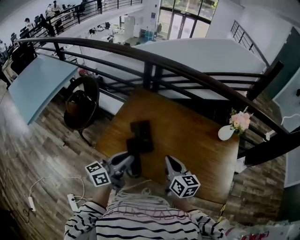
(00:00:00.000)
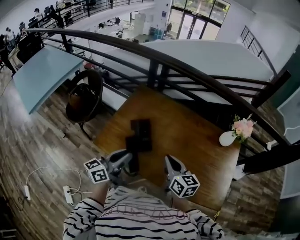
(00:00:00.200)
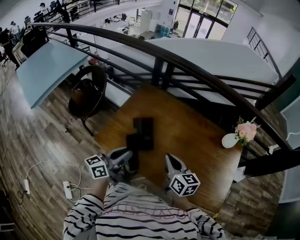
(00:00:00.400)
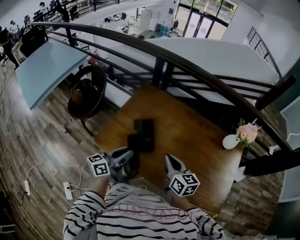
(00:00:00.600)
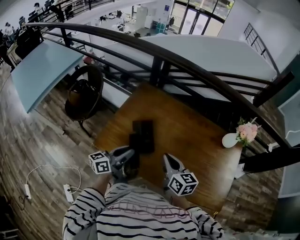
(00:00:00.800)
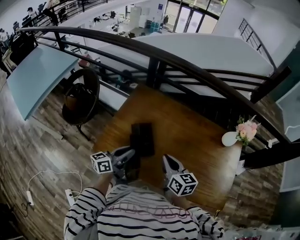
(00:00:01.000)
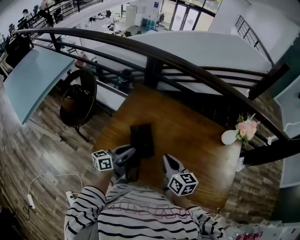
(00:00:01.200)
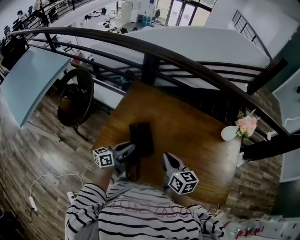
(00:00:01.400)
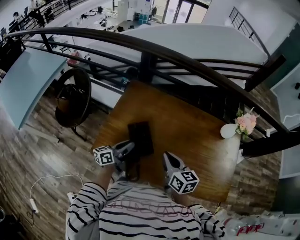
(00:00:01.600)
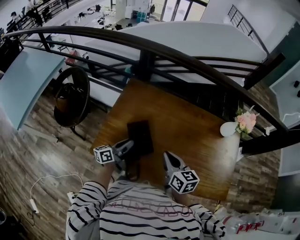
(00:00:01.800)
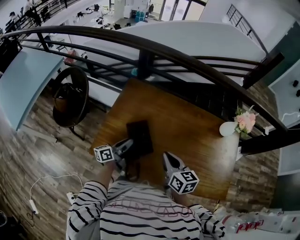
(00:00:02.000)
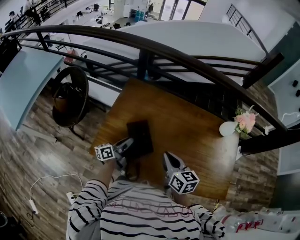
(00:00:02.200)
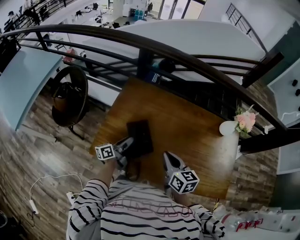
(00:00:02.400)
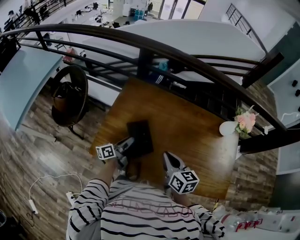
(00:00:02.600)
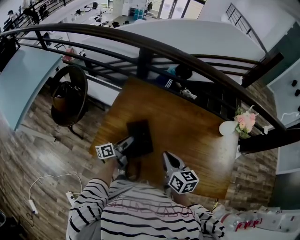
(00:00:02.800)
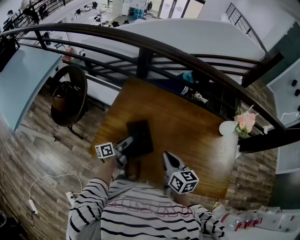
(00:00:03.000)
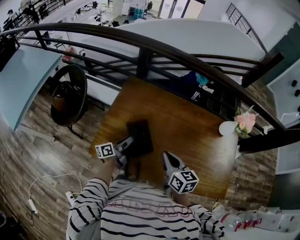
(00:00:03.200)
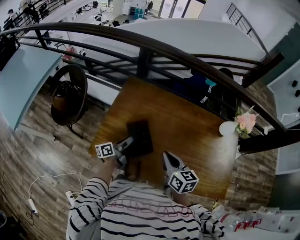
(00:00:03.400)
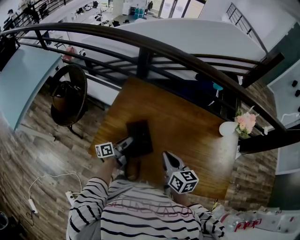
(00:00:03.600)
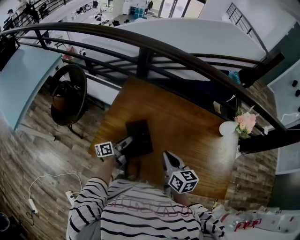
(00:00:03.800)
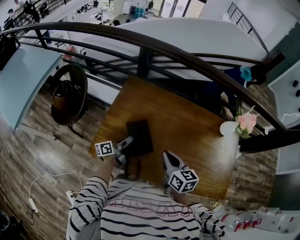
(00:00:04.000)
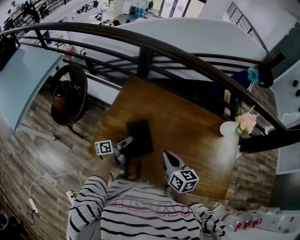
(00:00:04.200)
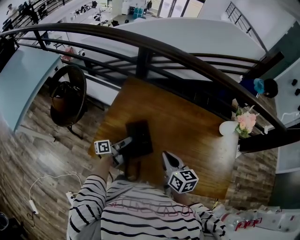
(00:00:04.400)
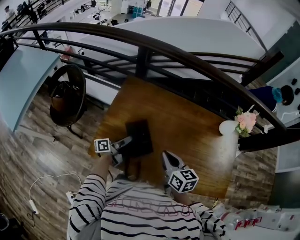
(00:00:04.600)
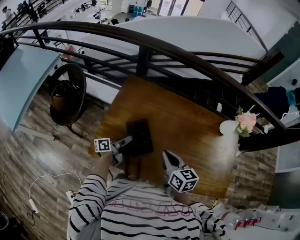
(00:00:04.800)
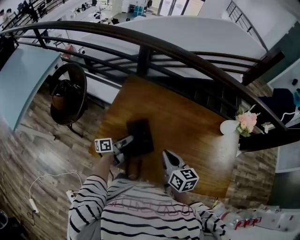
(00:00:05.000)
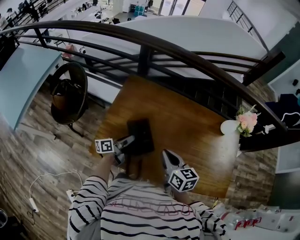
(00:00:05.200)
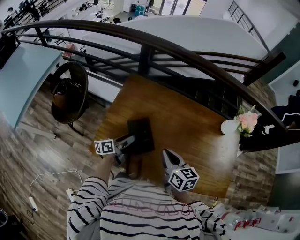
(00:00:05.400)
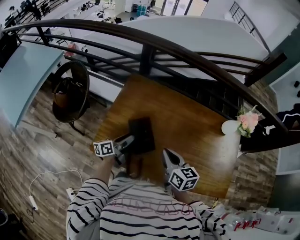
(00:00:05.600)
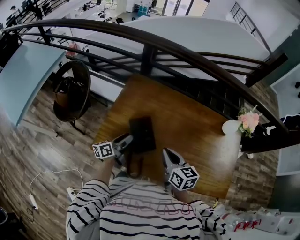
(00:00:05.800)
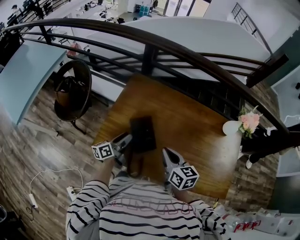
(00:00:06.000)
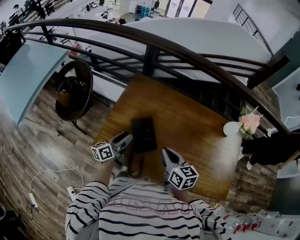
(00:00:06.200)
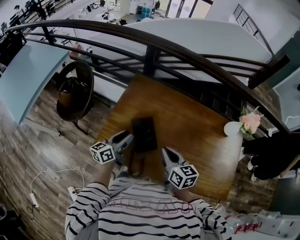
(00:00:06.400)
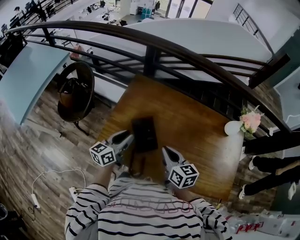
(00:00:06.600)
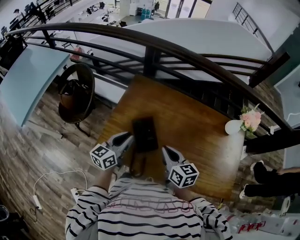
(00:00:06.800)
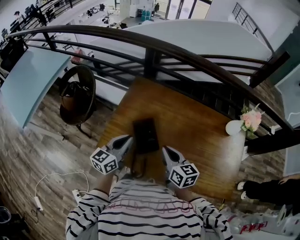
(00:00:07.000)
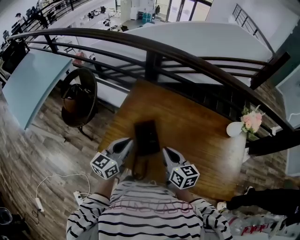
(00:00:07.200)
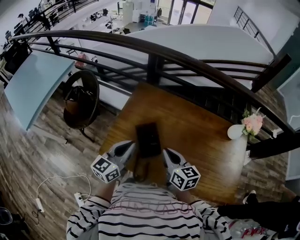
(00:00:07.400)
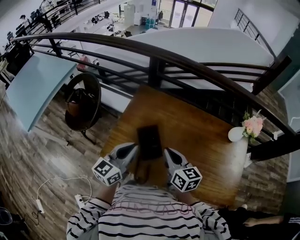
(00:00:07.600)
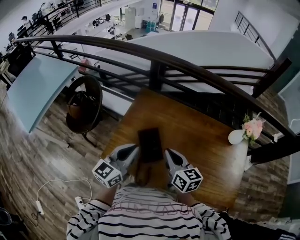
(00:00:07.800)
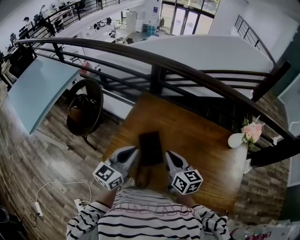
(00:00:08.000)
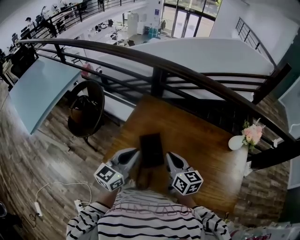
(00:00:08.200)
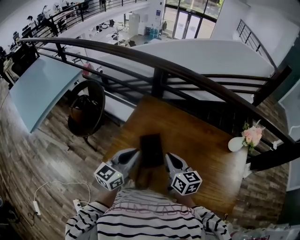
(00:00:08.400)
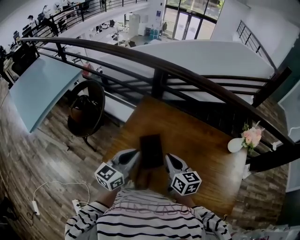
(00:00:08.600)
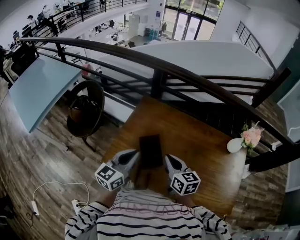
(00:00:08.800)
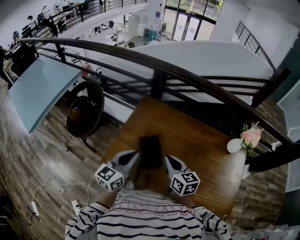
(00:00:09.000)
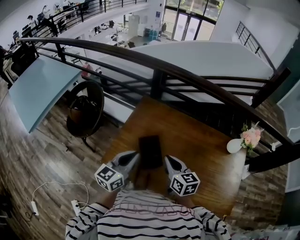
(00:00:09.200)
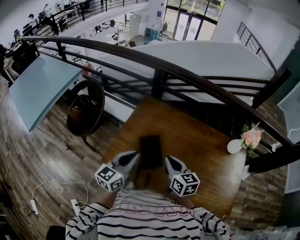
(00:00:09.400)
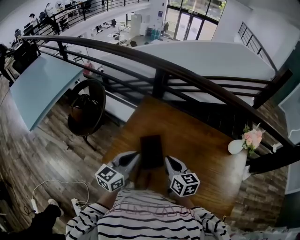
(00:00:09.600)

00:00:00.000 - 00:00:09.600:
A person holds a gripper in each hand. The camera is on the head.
00:00:00.000 - 00:00:01.600: The left gripper heads downward and forward, covering roughly 20 cm. Meanwhile the right gripper goes some 10 cm forward.
00:00:01.600 - 00:00:03.200: The left gripper moves downward, roughly 5 cm.
00:00:03.200 - 00:00:04.800: There are only small adjustments of the grippers.
00:00:04.800 - 00:00:06.400: The left gripper travels upward by approximately 10 cm, and rotates approximately 40 degrees.
00:00:06.400 - 00:00:08.000: The right gripper moves upward, roughly 5 cm. The left gripper moves upward, roughly 15 cm, turns by approximately 30 degrees, and closes up.
00:00:08.000 - 00:00:09.600: The grippers make only small movements.

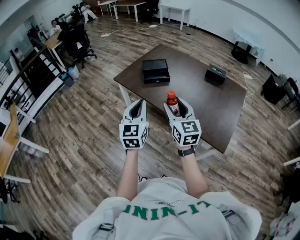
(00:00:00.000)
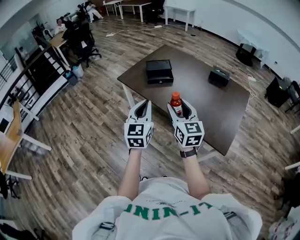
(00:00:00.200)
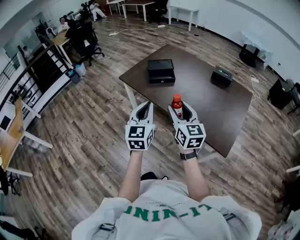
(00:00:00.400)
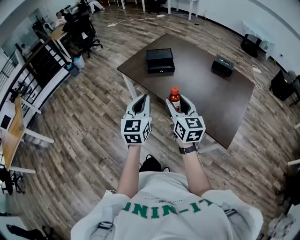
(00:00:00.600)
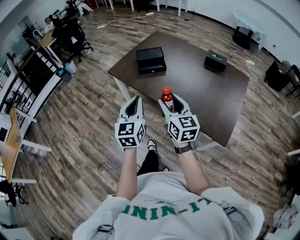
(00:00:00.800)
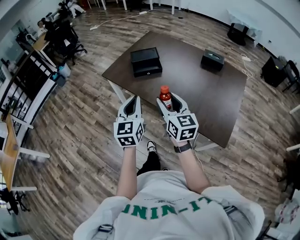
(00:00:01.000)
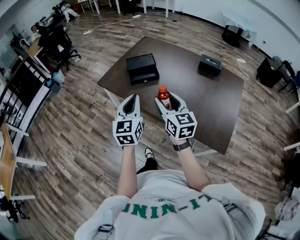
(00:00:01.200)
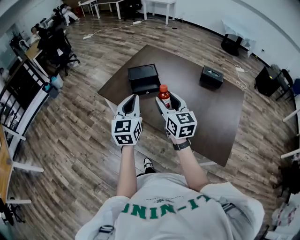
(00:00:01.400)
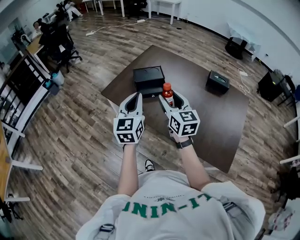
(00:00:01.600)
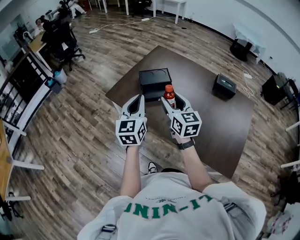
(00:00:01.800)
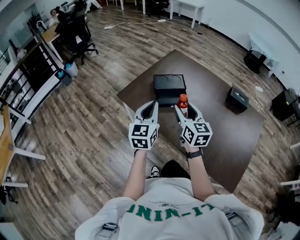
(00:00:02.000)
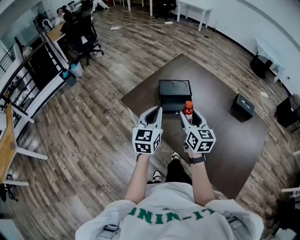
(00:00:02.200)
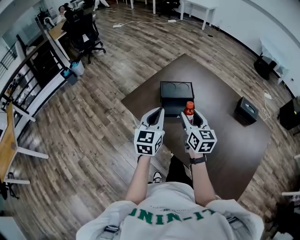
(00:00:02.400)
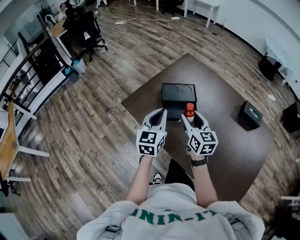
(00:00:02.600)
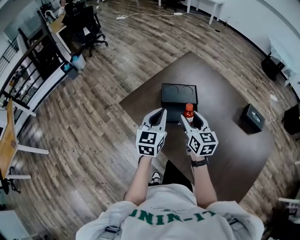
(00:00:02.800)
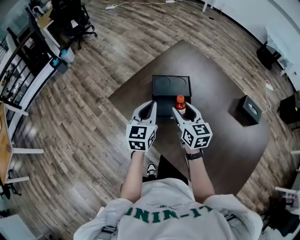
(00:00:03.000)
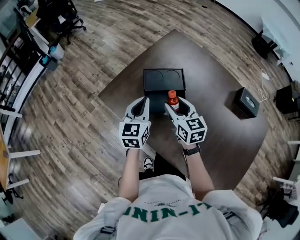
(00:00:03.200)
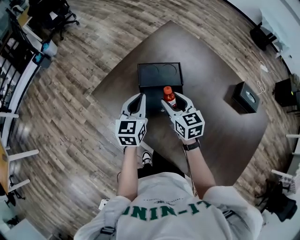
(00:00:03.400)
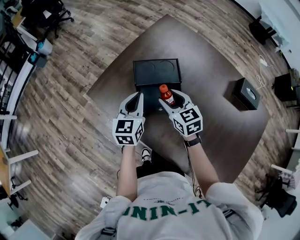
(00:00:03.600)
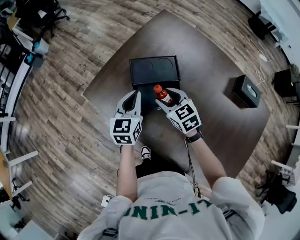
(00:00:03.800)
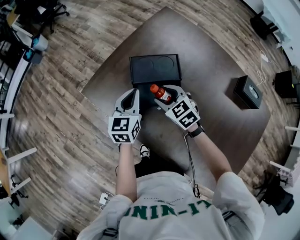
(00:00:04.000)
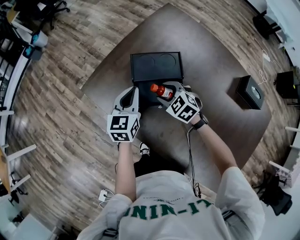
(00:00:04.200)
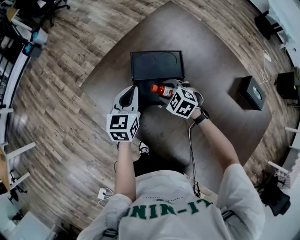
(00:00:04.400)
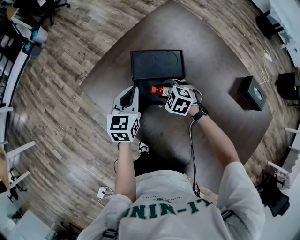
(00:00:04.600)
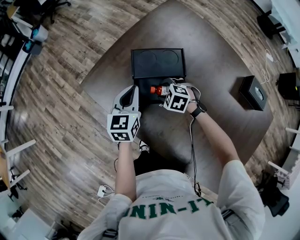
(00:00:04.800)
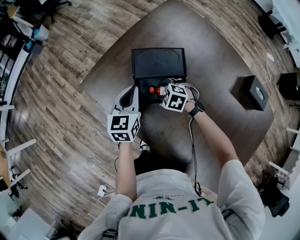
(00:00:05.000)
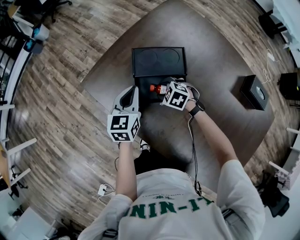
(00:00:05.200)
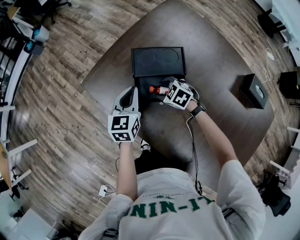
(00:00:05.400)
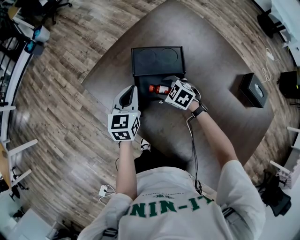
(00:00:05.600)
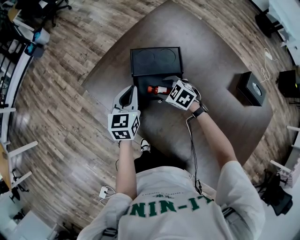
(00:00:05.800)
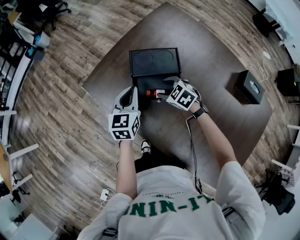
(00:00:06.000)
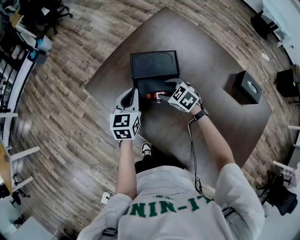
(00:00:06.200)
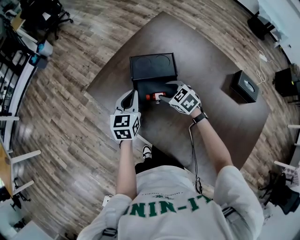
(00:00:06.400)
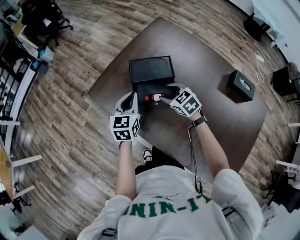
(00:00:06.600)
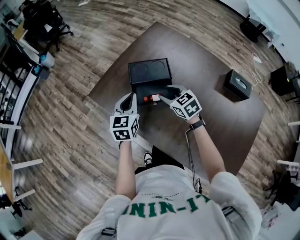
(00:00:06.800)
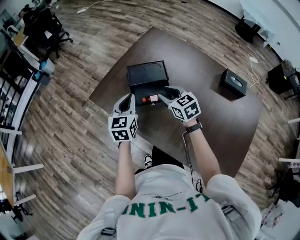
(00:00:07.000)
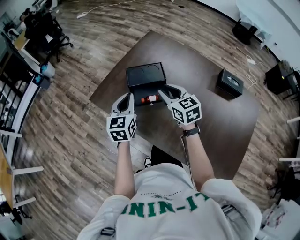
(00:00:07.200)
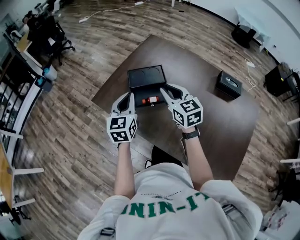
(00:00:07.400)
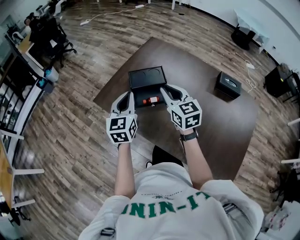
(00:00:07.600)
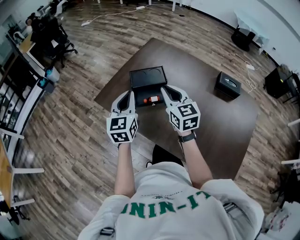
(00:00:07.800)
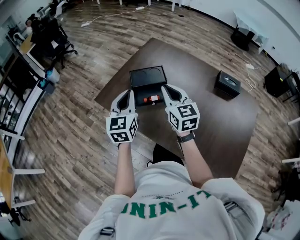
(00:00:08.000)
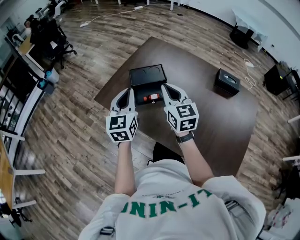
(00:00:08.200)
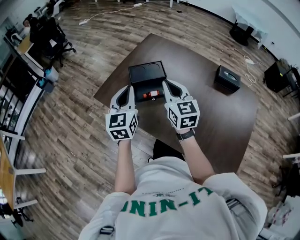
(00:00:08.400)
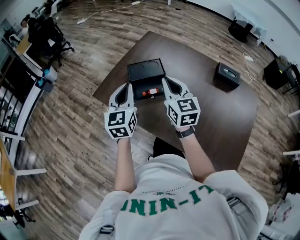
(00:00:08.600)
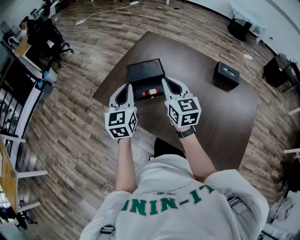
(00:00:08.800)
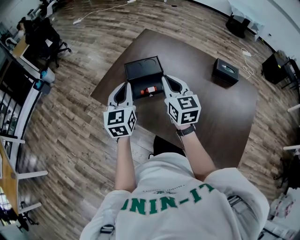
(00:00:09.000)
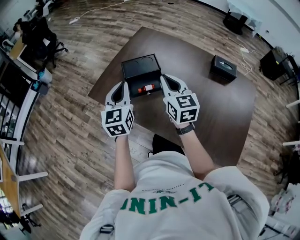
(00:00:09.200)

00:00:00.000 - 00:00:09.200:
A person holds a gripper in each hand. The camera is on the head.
00:00:00.000 - 00:00:01.600: The grippers both shift forward by approximately 25 cm.
00:00:01.600 - 00:00:03.000: The two grippers go roughly 30 cm forward and downward.
00:00:03.000 - 00:00:04.600: The right gripper travels downward by about 25 cm, and tips its fingers downward by about 40 degrees. Meanwhile the left gripper heads downward and forward, covering roughly 15 cm.
00:00:04.600 - 00:00:06.200: The right gripper moves upward, roughly 5 cm, and turns by approximately 20 degrees.
00:00:06.200 - 00:00:07.600: Both grippers travel together upward and backward, some 25 cm. The right gripper points its fingers roughly 40 degrees further upward, and closes up.
00:00:07.600 - 00:00:09.200: There are only small adjustments of the grippers.

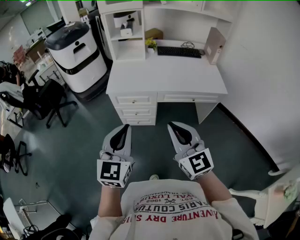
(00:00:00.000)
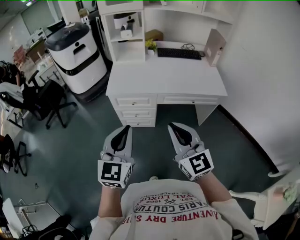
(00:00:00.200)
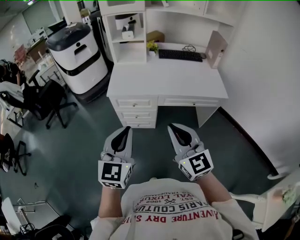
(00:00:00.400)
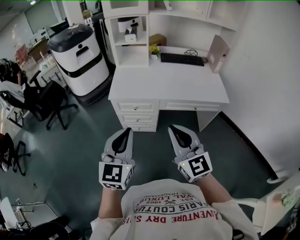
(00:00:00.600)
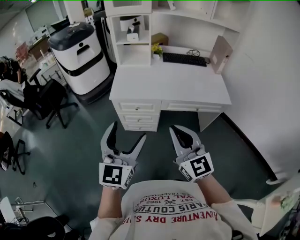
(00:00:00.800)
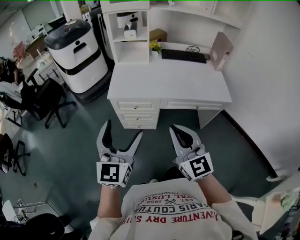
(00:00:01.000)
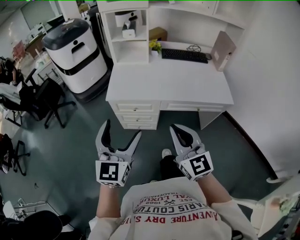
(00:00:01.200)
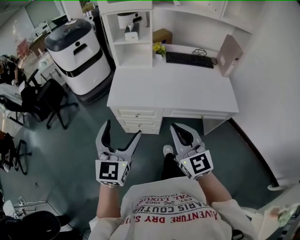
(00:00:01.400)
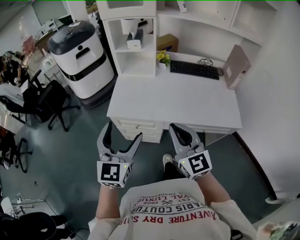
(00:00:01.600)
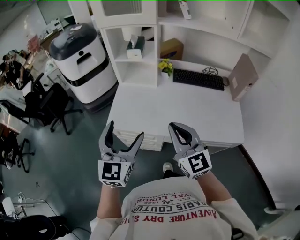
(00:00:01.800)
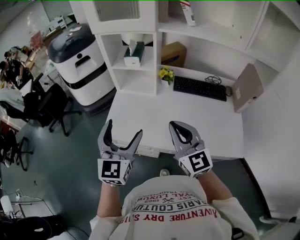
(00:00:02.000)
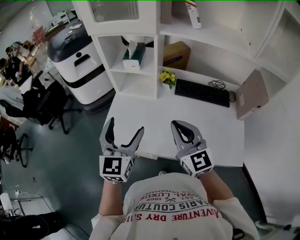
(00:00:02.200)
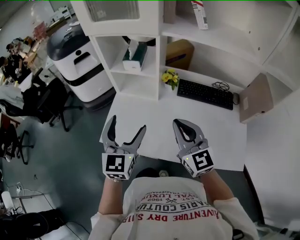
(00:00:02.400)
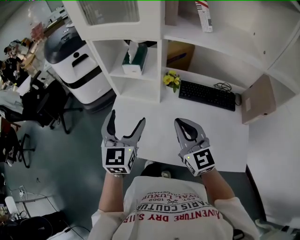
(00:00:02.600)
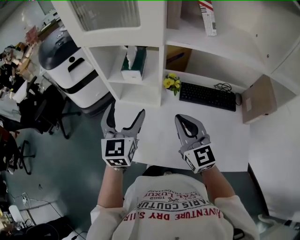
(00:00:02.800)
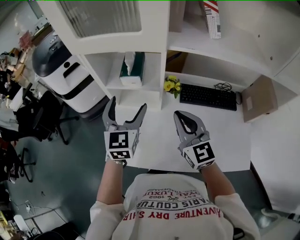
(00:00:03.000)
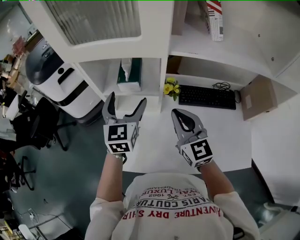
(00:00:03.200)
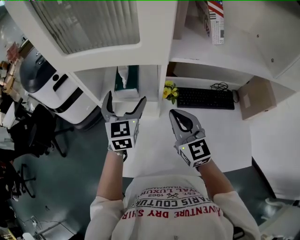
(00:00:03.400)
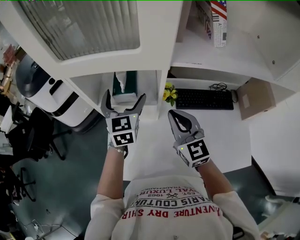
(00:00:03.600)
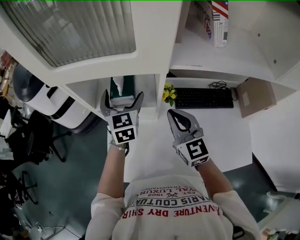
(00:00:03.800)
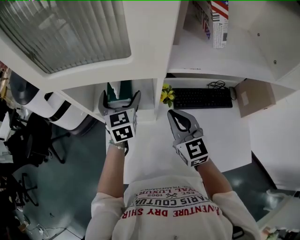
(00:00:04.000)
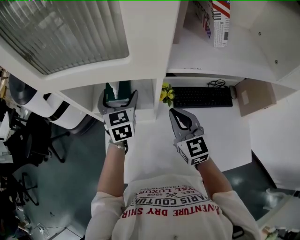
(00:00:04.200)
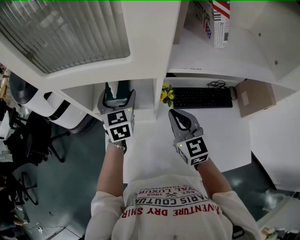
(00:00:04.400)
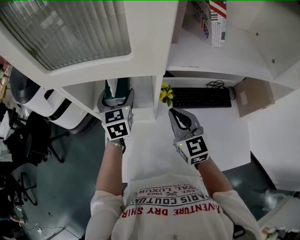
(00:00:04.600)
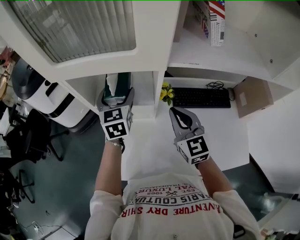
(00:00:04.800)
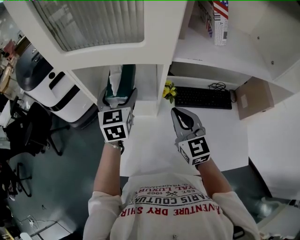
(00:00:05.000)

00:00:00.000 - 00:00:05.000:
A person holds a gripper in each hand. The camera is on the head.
00:00:00.000 - 00:00:01.600: Both grippers travel together forward, approximately 25 cm. The left gripper opens its fingers.
00:00:01.600 - 00:00:03.400: The pair of grippers is taken forward, approximately 50 cm.
00:00:03.400 - 00:00:05.000: The left gripper reaches approximately 10 cm forward, then returns.
